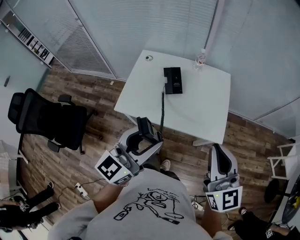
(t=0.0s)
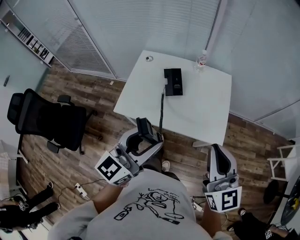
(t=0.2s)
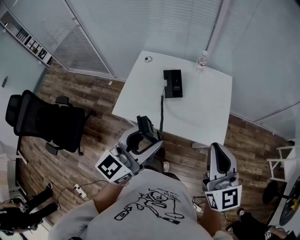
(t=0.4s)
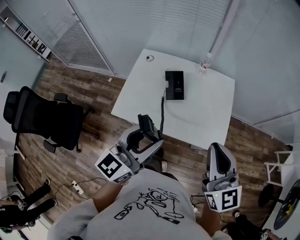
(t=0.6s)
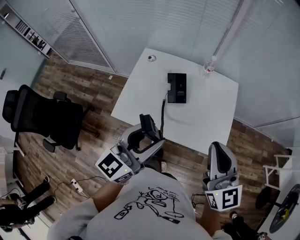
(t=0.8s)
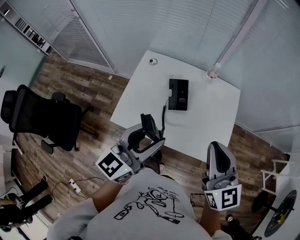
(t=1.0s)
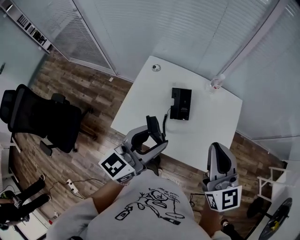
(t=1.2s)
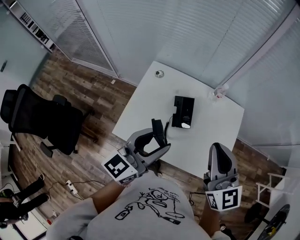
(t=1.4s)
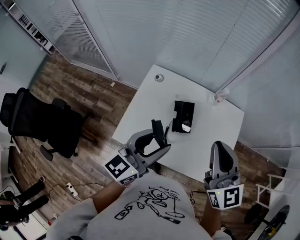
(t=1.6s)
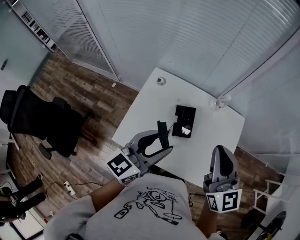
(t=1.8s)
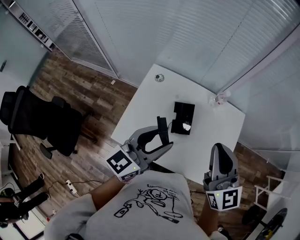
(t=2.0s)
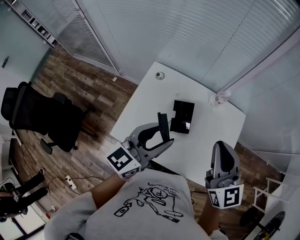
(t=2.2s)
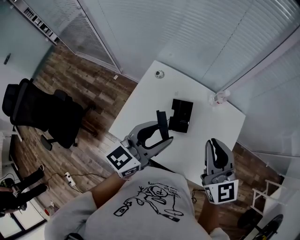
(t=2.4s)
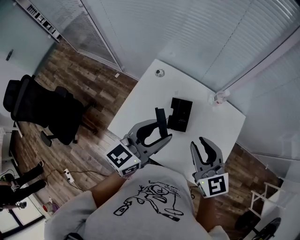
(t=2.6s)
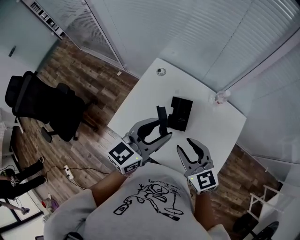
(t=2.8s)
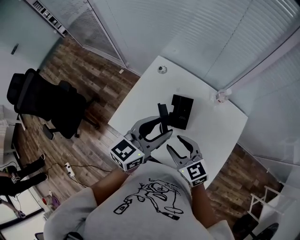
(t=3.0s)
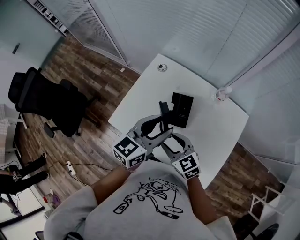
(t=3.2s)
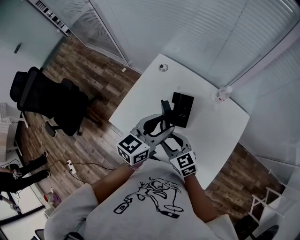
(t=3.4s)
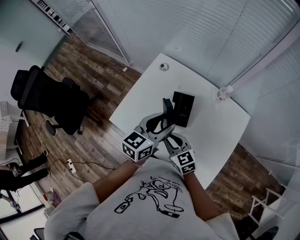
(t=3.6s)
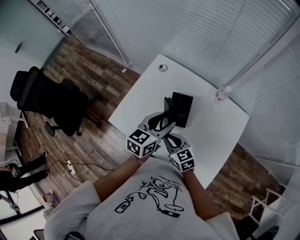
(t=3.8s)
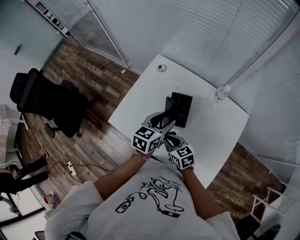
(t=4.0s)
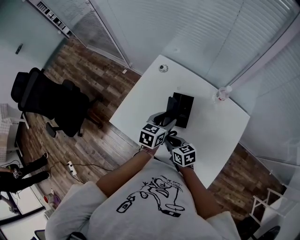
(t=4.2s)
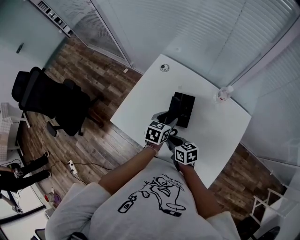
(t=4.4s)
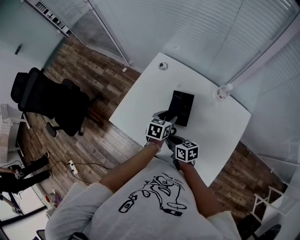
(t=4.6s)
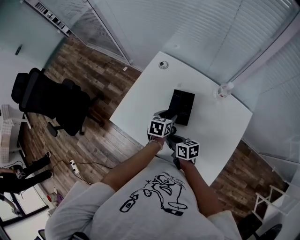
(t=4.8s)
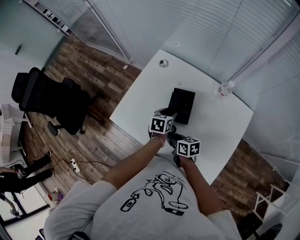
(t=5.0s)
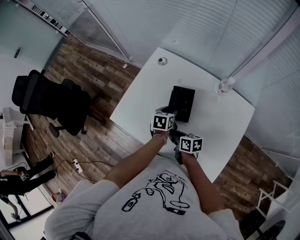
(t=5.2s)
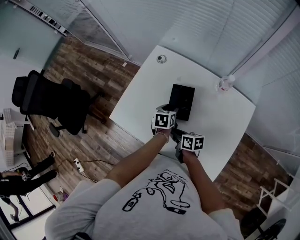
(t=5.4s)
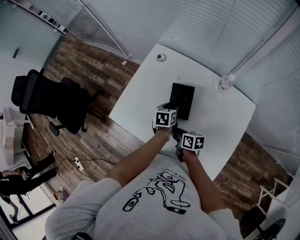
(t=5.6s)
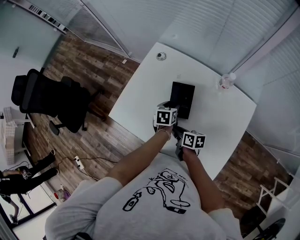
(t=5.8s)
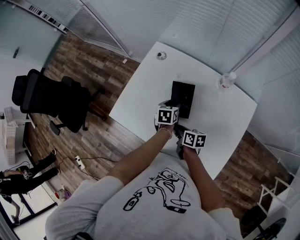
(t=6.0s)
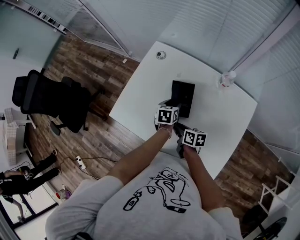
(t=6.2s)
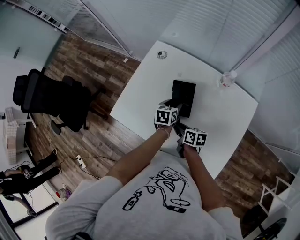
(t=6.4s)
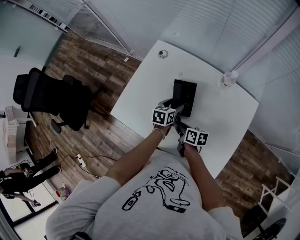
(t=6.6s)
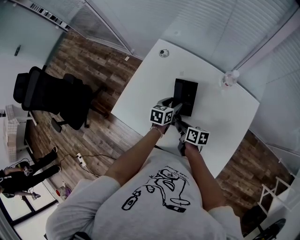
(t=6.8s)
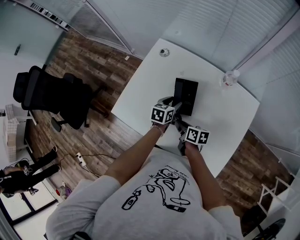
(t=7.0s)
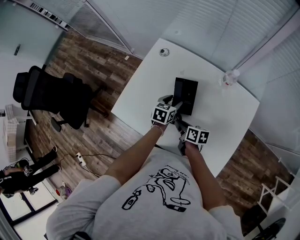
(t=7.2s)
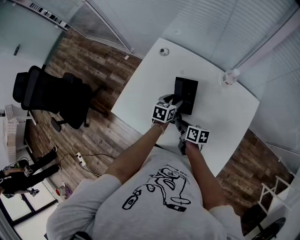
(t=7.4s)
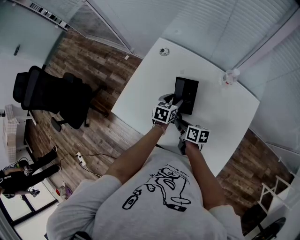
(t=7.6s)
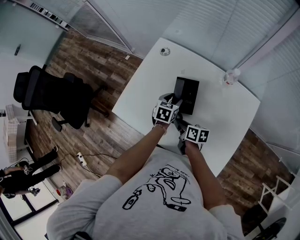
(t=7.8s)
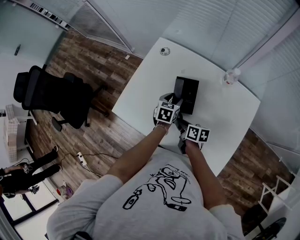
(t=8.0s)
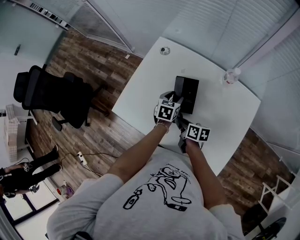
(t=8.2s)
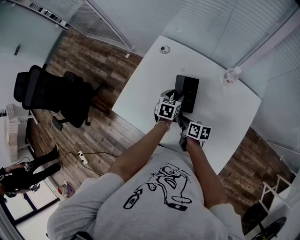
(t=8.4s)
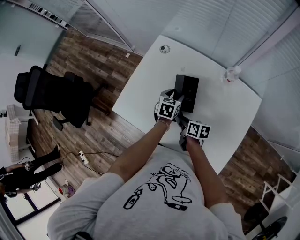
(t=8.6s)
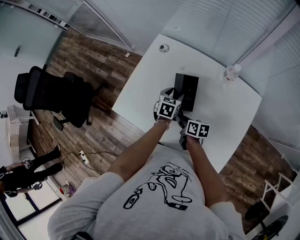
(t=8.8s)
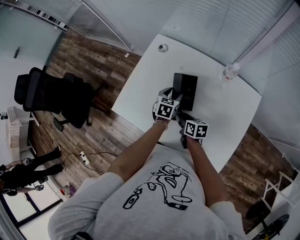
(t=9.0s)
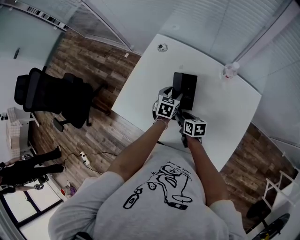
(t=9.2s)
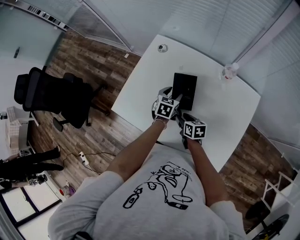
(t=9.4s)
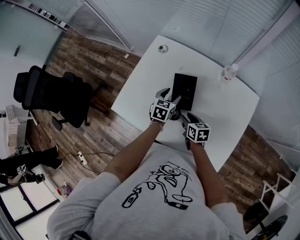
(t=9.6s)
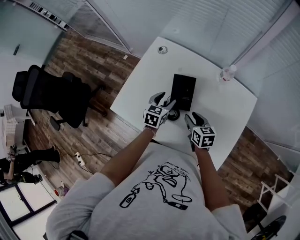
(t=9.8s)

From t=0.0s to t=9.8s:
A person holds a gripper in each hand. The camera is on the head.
From t=0.0s to t=1.4s: The left gripper goes roughly 25 cm forward, while the right gripper heads forward and to the left, covering roughly 30 cm.
From t=1.4s to t=2.8s: The left gripper goes some 5 cm forward. Meanwhile the right gripper moves downward, some 15 cm, changes its angle by roughly 30 degrees, and opens its fingers.
From t=2.8s to t=4.2s: The two grippers go some 20 cm downward. The left gripper rotates roughly 30 degrees, while the right gripper changes its angle by some 30 degrees.
From t=4.2s to t=5.6s: The left gripper shifts roughly 15 cm downward, and changes its angle by approximately 20 degrees, while the right gripper shifts about 5 cm downward, and swivels approximately 30 degrees.
From t=5.6s to t=8.4s: The grippers move only a little.
From t=8.4s to t=9.8s: The left gripper shifts by some 5 cm, while the right gripper shifts about 5 cm to the right, rotates about 30 degrees, and opens its fingers.

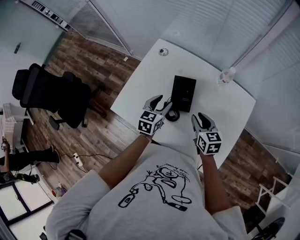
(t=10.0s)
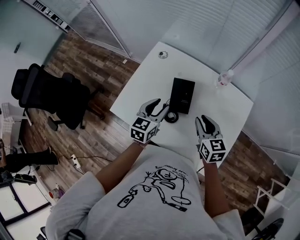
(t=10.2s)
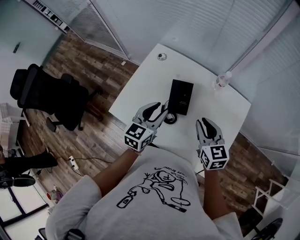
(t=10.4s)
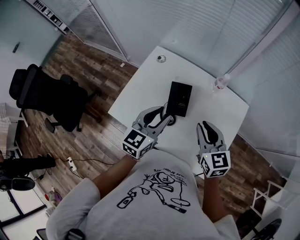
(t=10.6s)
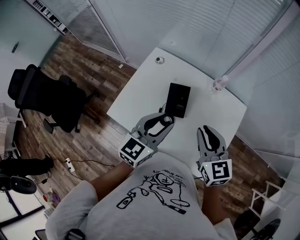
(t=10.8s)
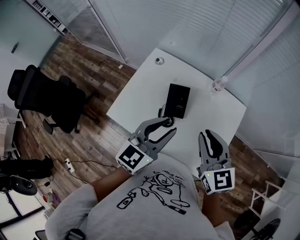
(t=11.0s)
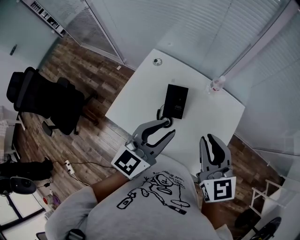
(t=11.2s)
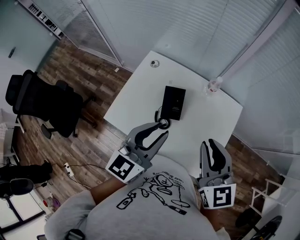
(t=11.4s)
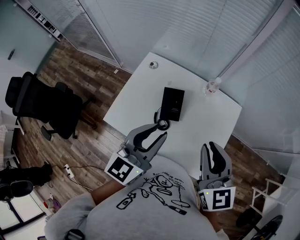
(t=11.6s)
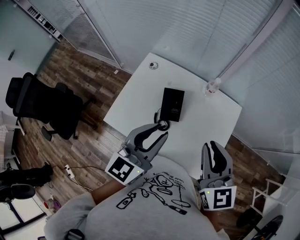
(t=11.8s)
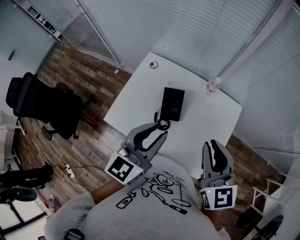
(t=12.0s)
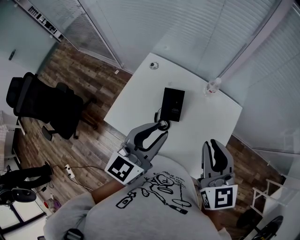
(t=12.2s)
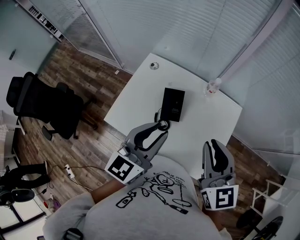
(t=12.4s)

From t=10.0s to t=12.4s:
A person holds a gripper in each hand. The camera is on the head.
From t=10.0s to t=11.2s: The two grippers go about 25 cm upward. The right gripper swivels approximately 30 degrees. The left gripper swivels about 30 degrees, and closes its fingers.
From t=11.2s to t=12.4s: The grippers stay close to where they were, moving slightly.

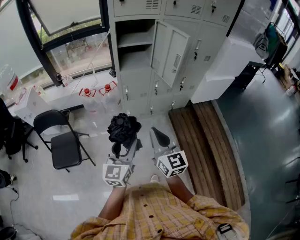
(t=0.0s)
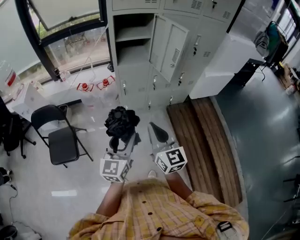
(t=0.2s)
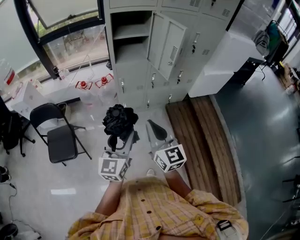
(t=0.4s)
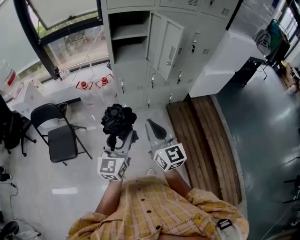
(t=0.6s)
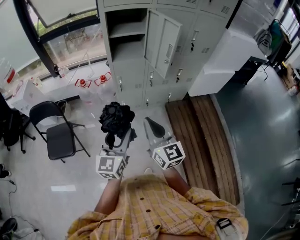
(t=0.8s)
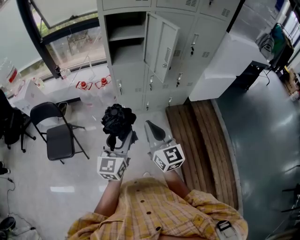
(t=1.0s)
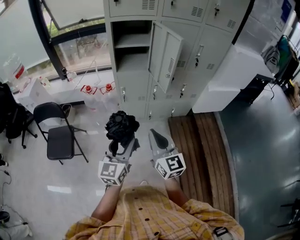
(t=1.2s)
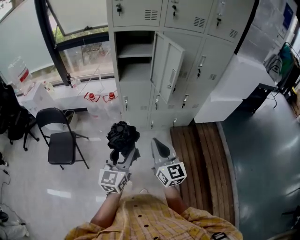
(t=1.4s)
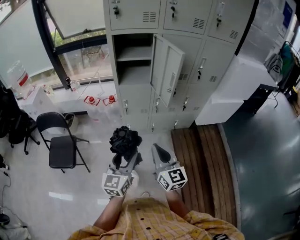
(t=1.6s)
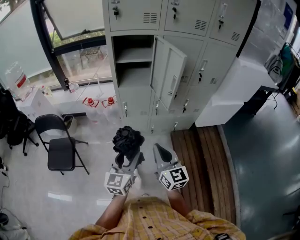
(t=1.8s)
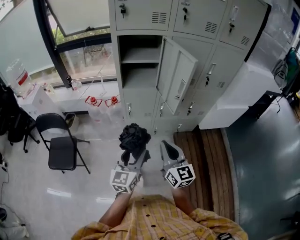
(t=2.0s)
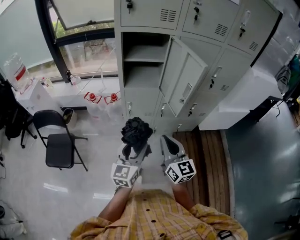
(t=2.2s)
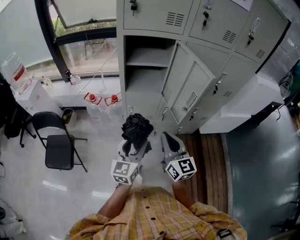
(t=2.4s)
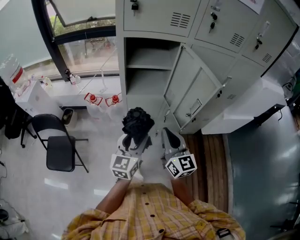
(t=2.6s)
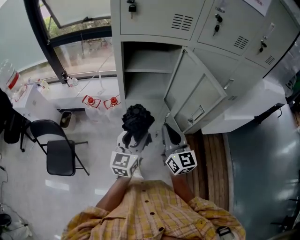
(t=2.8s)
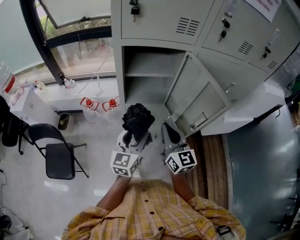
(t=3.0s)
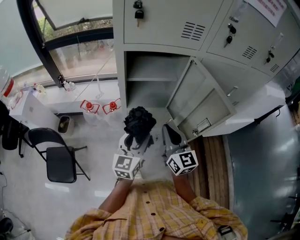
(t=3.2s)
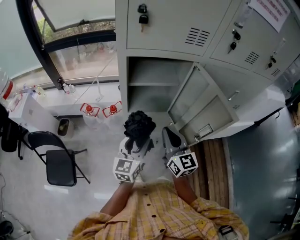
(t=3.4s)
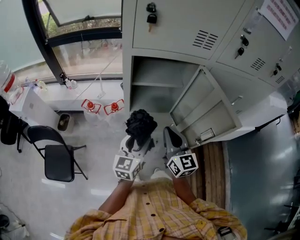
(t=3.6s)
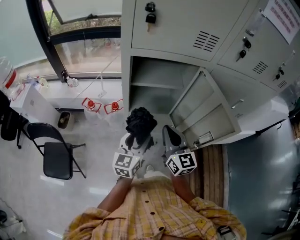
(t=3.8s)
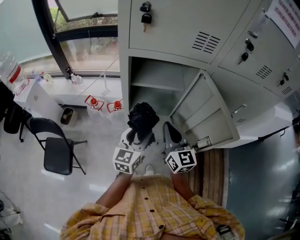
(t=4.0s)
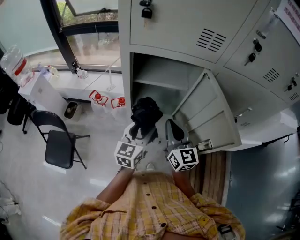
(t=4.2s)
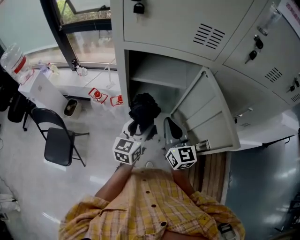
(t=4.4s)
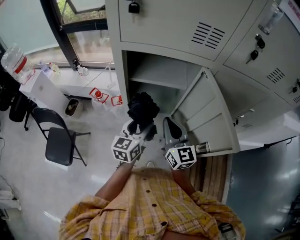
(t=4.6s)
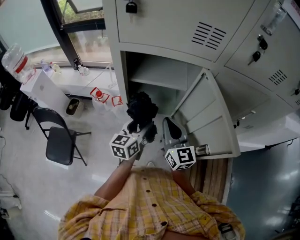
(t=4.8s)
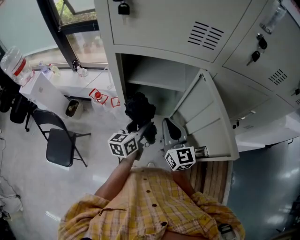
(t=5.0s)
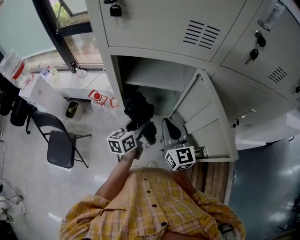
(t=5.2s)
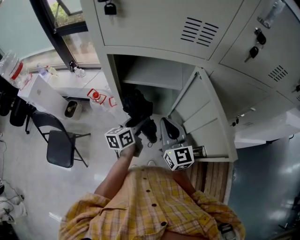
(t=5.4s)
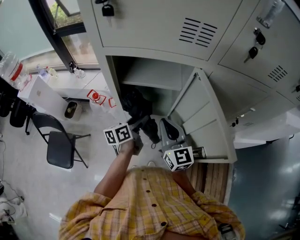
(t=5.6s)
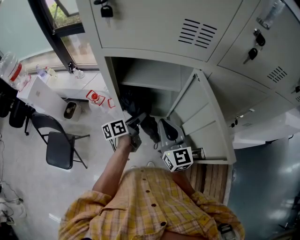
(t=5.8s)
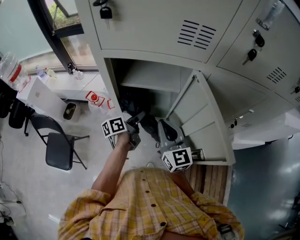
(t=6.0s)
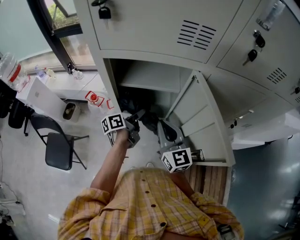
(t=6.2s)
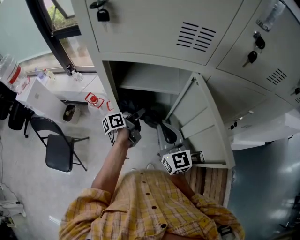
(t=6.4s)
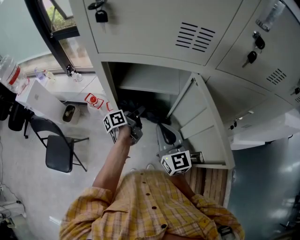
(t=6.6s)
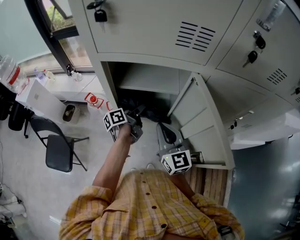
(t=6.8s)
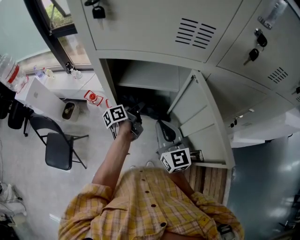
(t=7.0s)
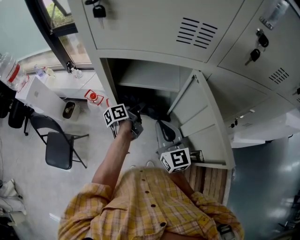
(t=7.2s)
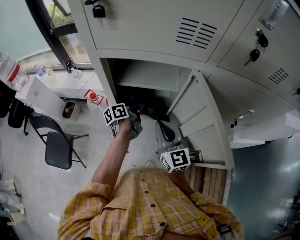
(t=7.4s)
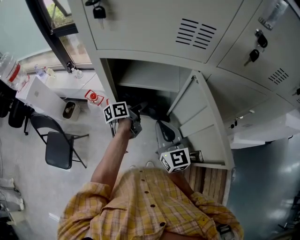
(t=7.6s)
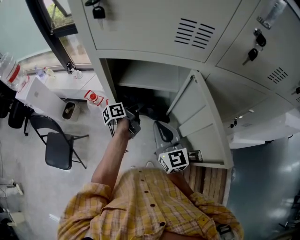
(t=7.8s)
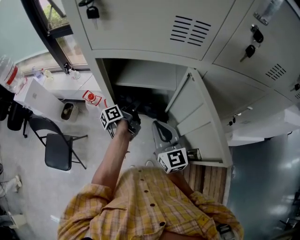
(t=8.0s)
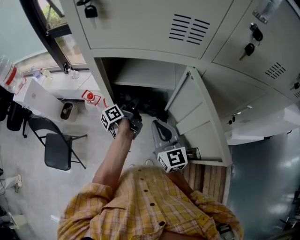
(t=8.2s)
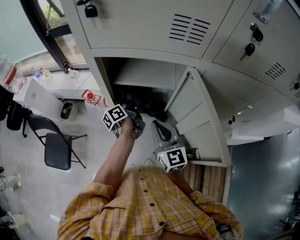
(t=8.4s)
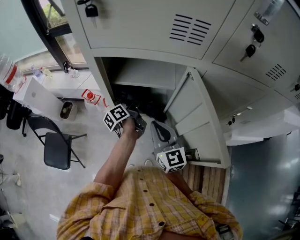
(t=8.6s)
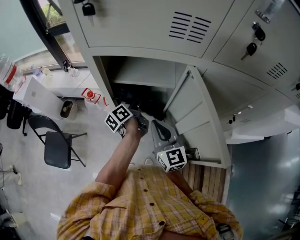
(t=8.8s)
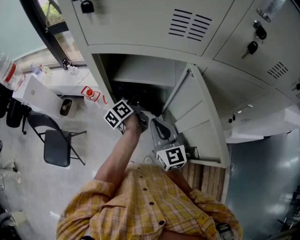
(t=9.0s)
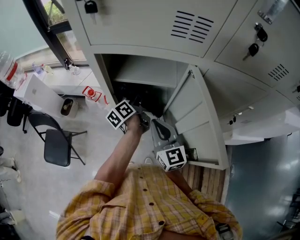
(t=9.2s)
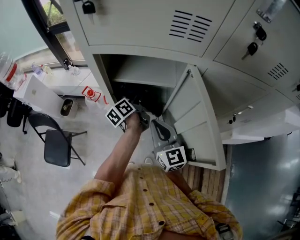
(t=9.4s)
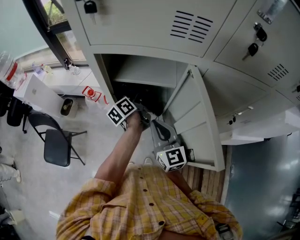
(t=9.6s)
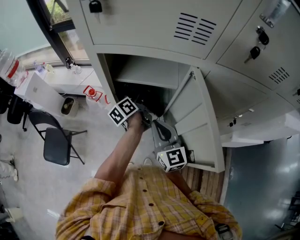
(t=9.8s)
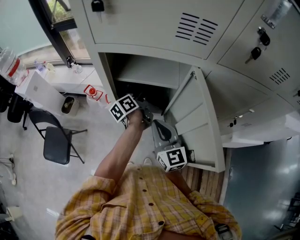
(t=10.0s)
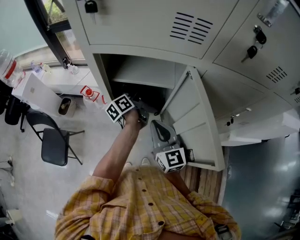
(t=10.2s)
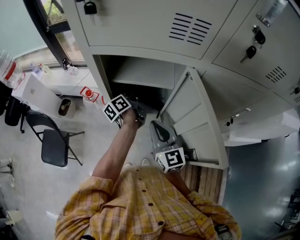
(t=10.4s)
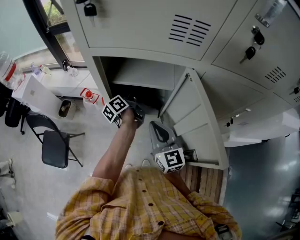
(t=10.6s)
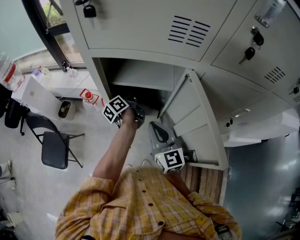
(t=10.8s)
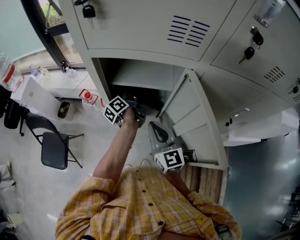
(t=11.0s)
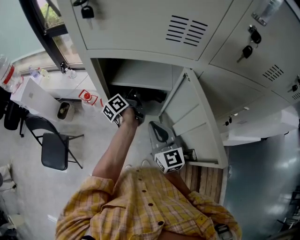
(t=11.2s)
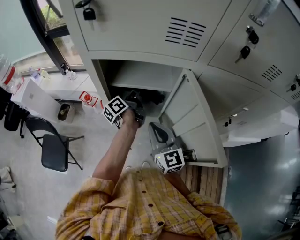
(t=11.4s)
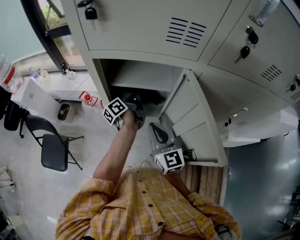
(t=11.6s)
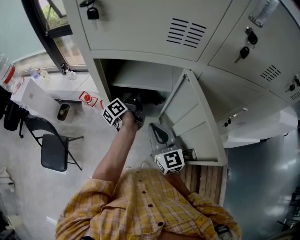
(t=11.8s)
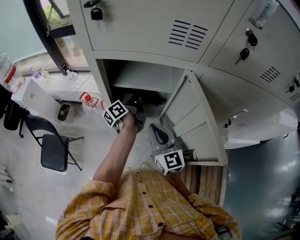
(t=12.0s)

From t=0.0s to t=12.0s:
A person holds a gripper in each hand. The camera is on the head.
From t=0.0s to t=1.6s: Both grippers travel together to the right, some 10 cm.
From t=1.6s to t=3.0s: The grippers both shift forward by roughly 35 cm.
From t=3.0s to t=4.4s: The grippers both shift forward by some 10 cm.
From t=4.4s to t=6.0s: The left gripper moves forward and downward, roughly 15 cm, and rotates around the line of its fingers by approximately 50 degrees, counterclockwise from behind.
From t=6.0s to t=7.6s: The left gripper heads forward, covering approximately 5 cm.
From t=7.6s to t=9.0s: The left gripper swivels about 30 degrees.
From t=9.0s to t=10.4s: The grippers make only small movements.
From t=10.4s to t=12.0s: The left gripper closes up.
